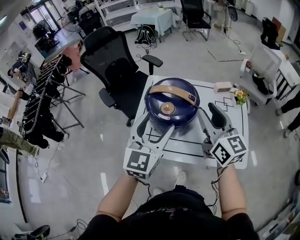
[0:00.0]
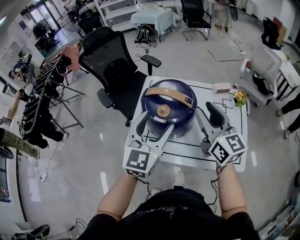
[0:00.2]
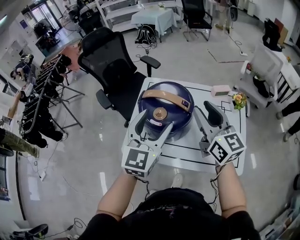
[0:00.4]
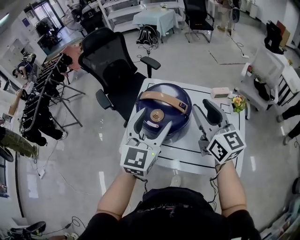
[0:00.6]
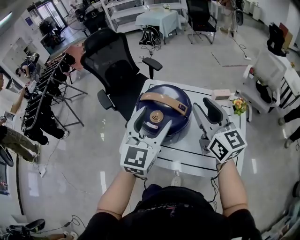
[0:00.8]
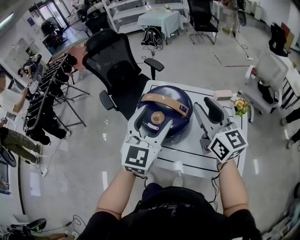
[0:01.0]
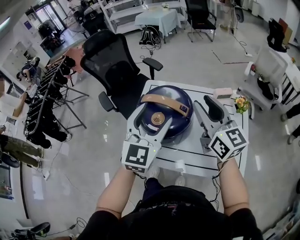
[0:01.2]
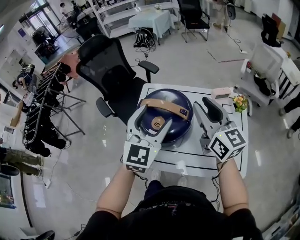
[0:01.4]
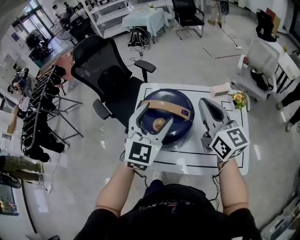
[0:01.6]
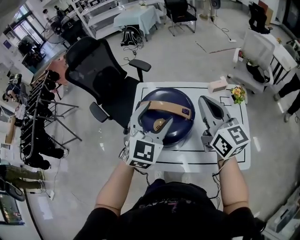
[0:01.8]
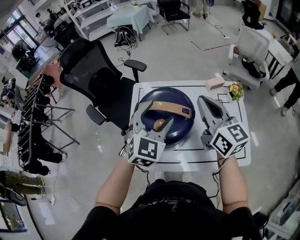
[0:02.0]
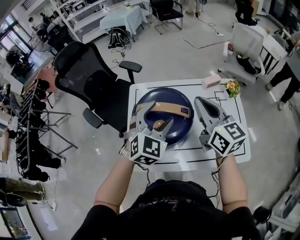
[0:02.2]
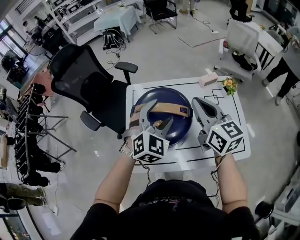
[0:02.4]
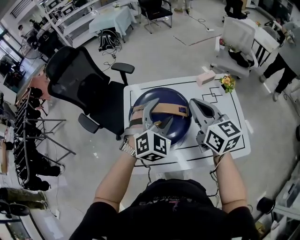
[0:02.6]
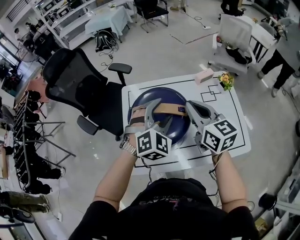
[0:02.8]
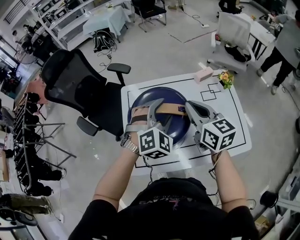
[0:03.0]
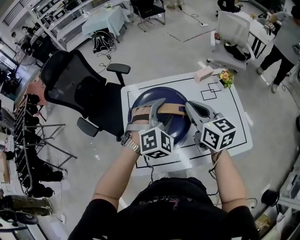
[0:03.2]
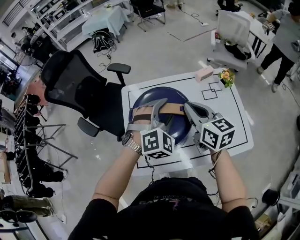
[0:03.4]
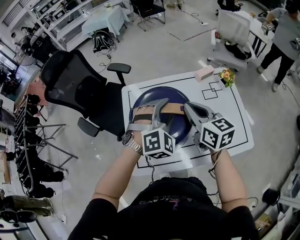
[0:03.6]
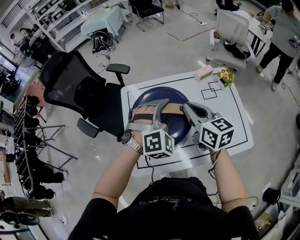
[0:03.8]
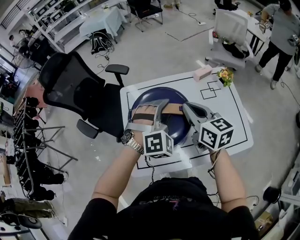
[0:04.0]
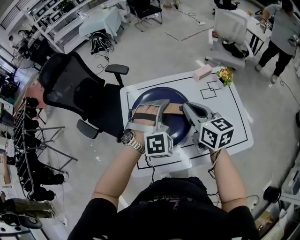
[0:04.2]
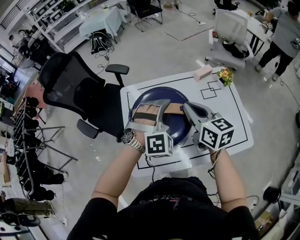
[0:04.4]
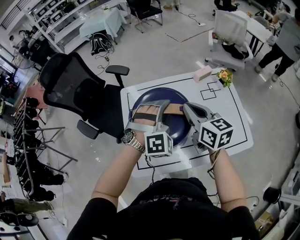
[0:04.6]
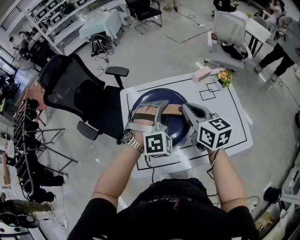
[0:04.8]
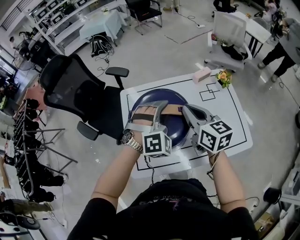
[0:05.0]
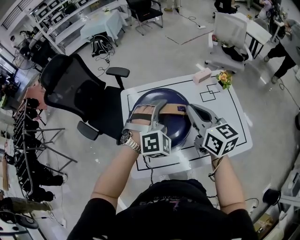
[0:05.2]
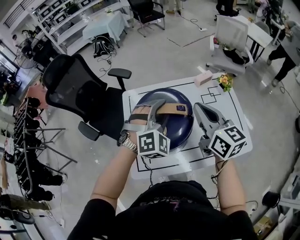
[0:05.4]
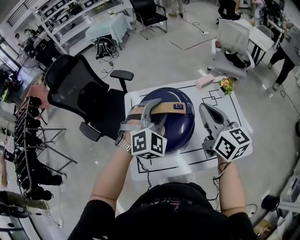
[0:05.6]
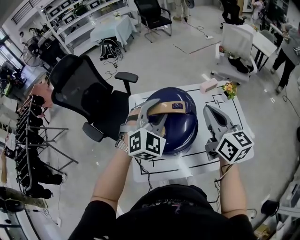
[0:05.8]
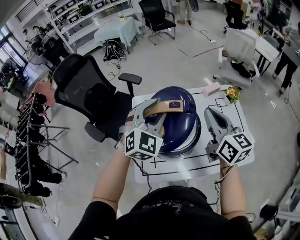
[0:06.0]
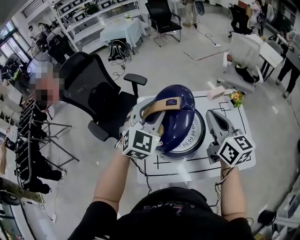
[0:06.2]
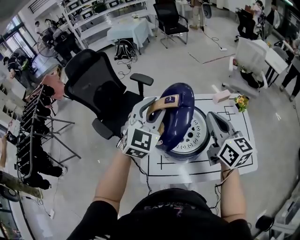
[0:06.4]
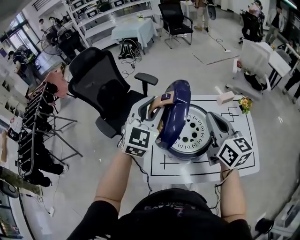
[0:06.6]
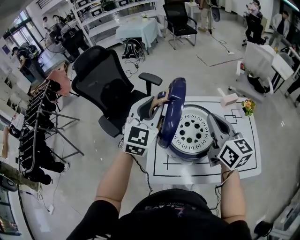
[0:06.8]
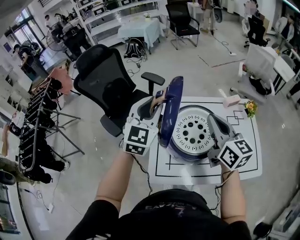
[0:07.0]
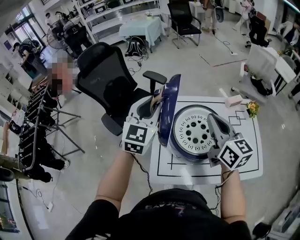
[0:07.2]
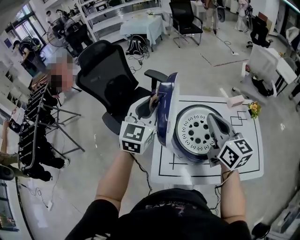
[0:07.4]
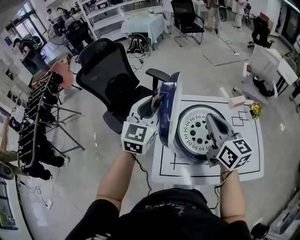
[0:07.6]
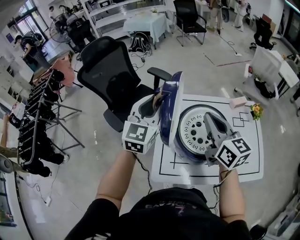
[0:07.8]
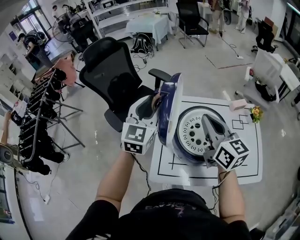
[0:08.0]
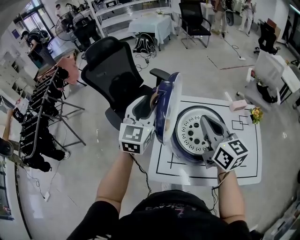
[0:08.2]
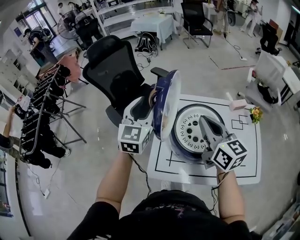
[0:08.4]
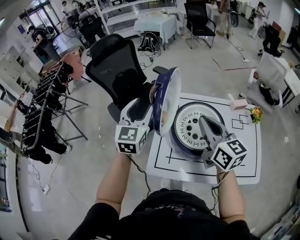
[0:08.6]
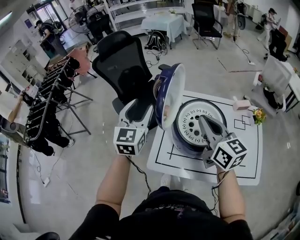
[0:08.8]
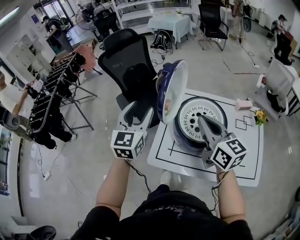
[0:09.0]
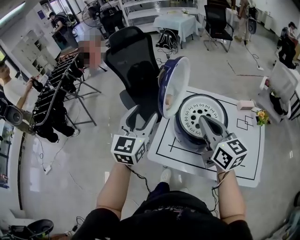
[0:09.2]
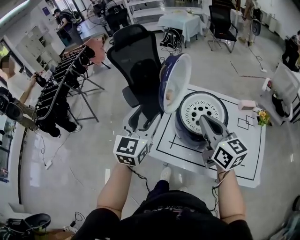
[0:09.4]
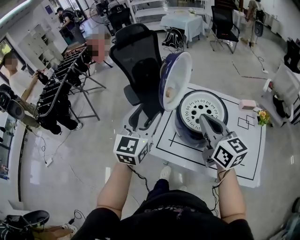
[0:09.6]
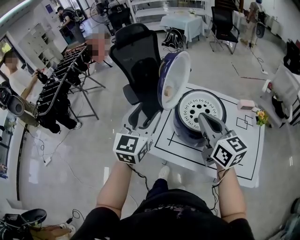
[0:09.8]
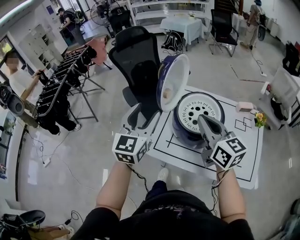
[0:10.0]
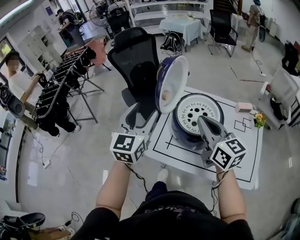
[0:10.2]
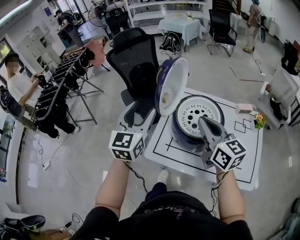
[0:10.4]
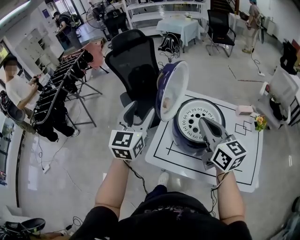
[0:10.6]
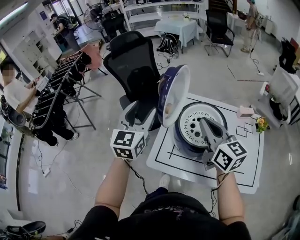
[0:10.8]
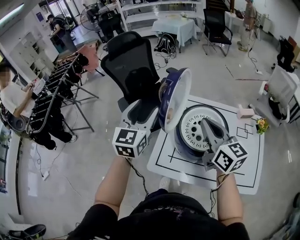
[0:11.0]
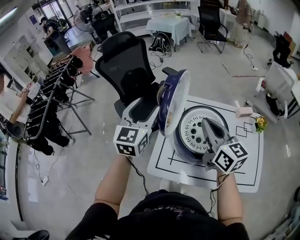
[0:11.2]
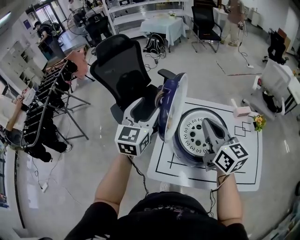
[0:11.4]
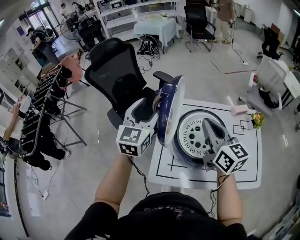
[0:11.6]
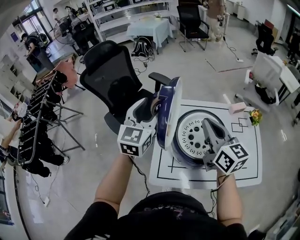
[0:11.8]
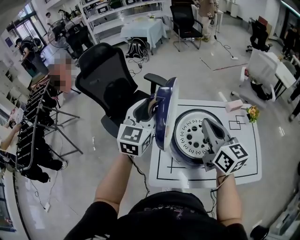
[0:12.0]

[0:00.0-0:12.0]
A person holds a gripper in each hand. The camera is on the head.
0:00.0 to 0:01.6: The two grippers go some 10 cm forward. The right gripper closes its fingers.
0:01.6 to 0:03.0: The right gripper travels downward by roughly 10 cm. Meanwhile the left gripper travels downward and forward by about 10 cm, and changes its angle by approximately 40 degrees.
0:03.0 to 0:04.4: The left gripper rotates some 20 degrees.
0:04.4 to 0:06.0: The right gripper travels upward by roughly 10 cm. The left gripper is displaced upward and to the left by approximately 10 cm, and swivels approximately 30 degrees.
0:06.0 to 0:07.6: The two grippers go approximately 15 cm to the left. The left gripper turns by about 40 degrees.
0:07.6 to 0:09.0: The left gripper shifts roughly 15 cm backward and to the left, rotates about 20 degrees, and opens, while the right gripper travels backward by some 5 cm.
0:09.0 to 0:10.4: The left gripper travels backward by about 5 cm.
0:10.4 to 0:12.0: The right gripper shifts some 10 cm forward, and rotates approximately 20 degrees, while the left gripper moves forward, some 20 cm, and changes its angle by some 20 degrees.

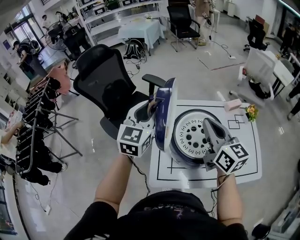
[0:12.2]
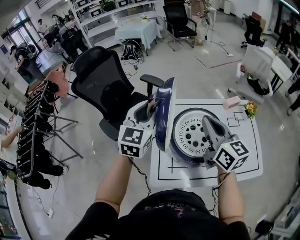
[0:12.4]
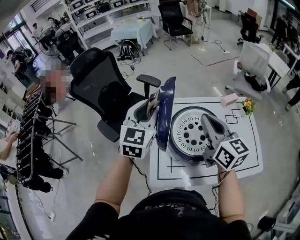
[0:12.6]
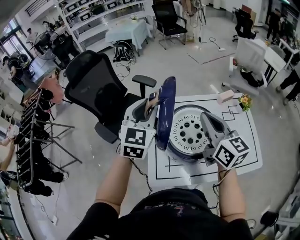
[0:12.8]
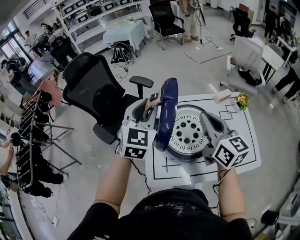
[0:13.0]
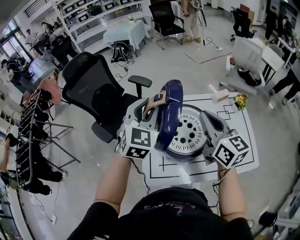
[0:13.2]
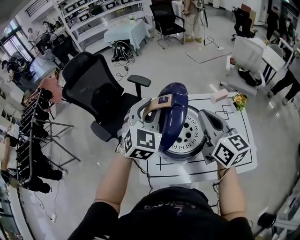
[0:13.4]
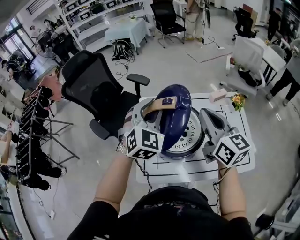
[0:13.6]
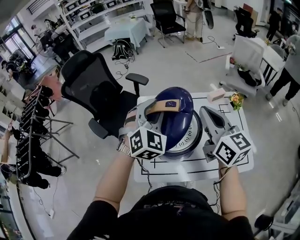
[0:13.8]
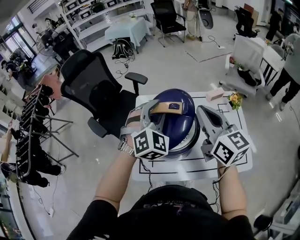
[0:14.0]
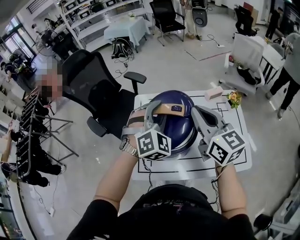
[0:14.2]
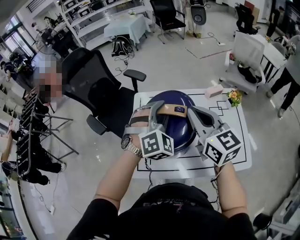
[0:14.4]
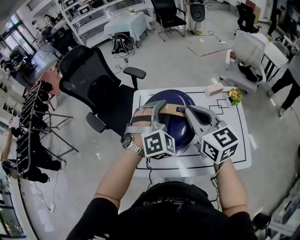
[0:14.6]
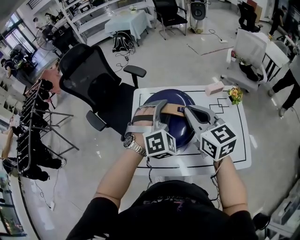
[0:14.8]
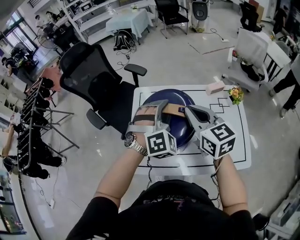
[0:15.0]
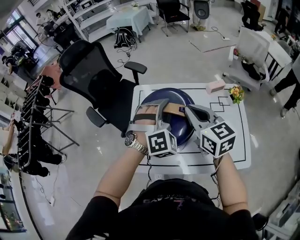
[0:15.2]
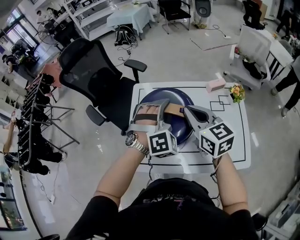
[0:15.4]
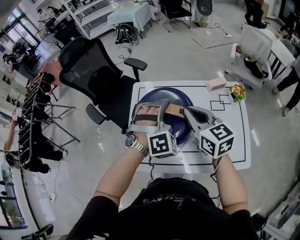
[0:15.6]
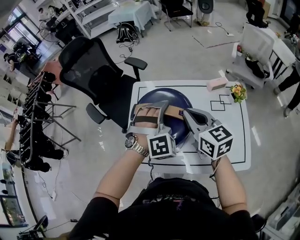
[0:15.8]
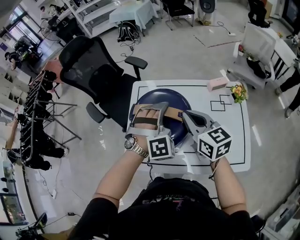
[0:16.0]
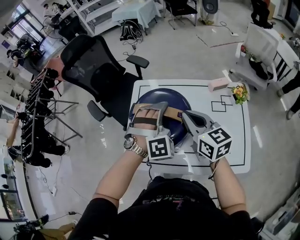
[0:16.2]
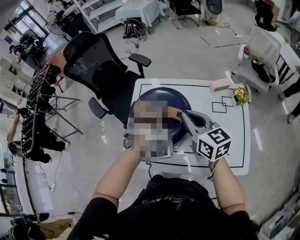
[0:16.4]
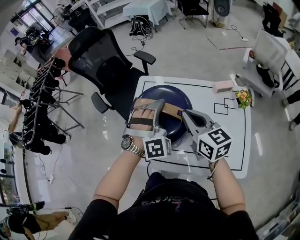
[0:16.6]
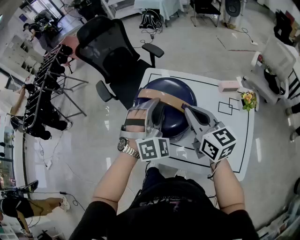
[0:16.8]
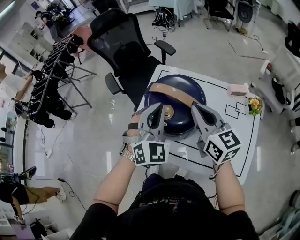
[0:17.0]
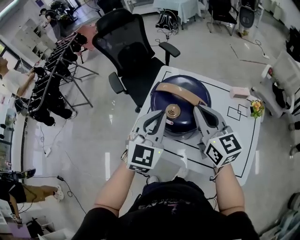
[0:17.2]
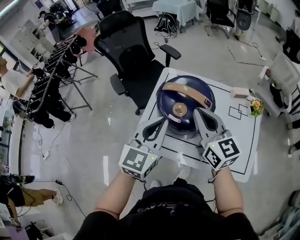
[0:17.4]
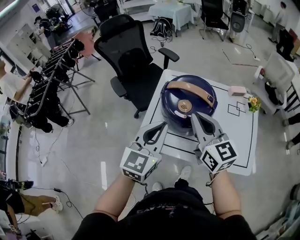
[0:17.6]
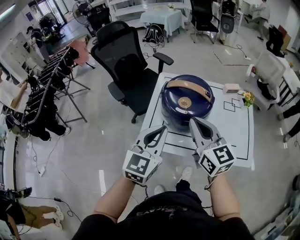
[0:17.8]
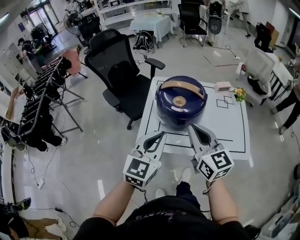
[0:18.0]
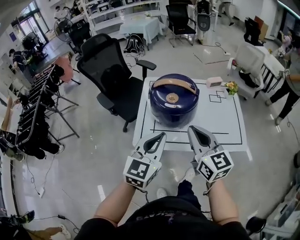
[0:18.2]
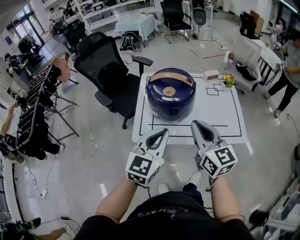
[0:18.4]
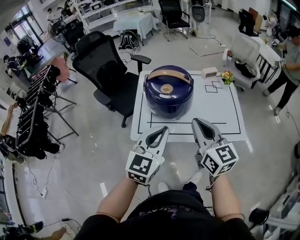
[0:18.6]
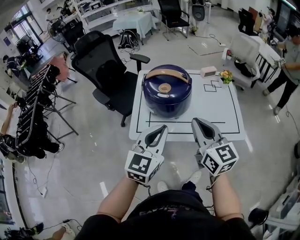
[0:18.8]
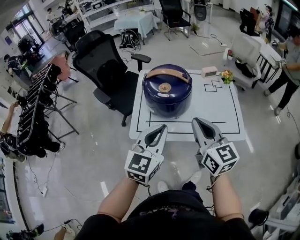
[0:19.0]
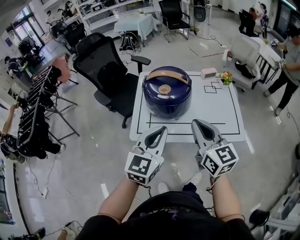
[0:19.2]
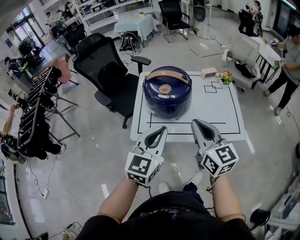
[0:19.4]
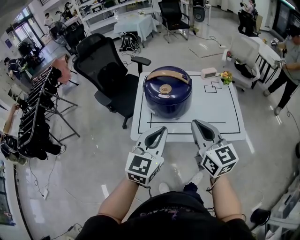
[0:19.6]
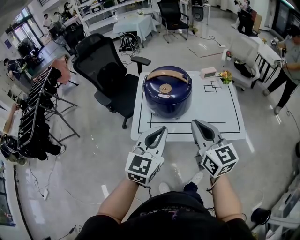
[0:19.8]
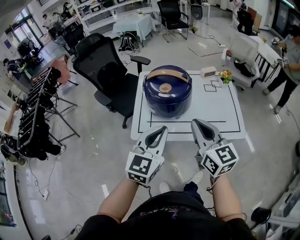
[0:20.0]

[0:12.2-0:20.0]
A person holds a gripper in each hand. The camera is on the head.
0:12.2 to 0:13.8: The right gripper shifts some 10 cm to the right, while the left gripper shifts approximately 15 cm to the right, and swivels approximately 40 degrees.
0:13.8 to 0:15.4: The left gripper shifts roughly 10 cm to the right and downward, and rotates approximately 30 degrees. Meanwhile the right gripper is displaced downward by approximately 10 cm.
0:15.4 to 0:16.8: There are only small adjustments of the grippers.
0:16.8 to 0:18.4: The left gripper changes place by some 30 cm, rolls counterclockwise, seen from behind, by approximately 60 degrees, and closes up, while the right gripper ends up approximately 25 cm from where it was, and swivels roughly 20 degrees.
0:18.4 to 0:20.0: The grippers make only small movements.

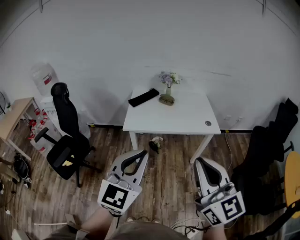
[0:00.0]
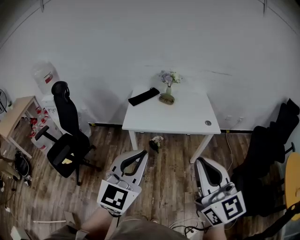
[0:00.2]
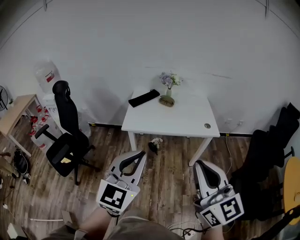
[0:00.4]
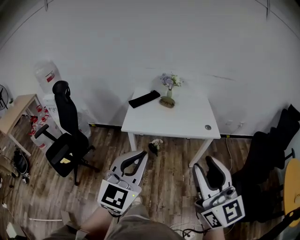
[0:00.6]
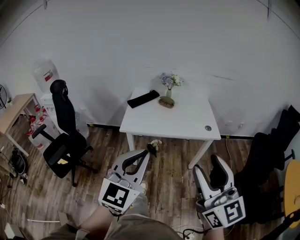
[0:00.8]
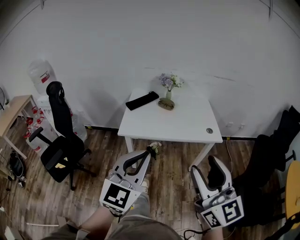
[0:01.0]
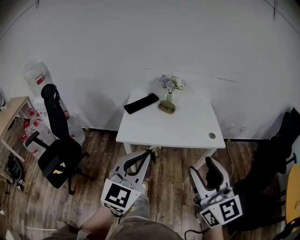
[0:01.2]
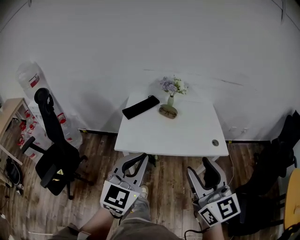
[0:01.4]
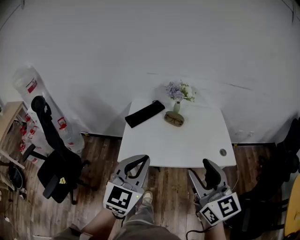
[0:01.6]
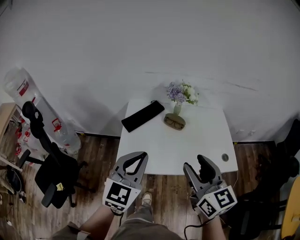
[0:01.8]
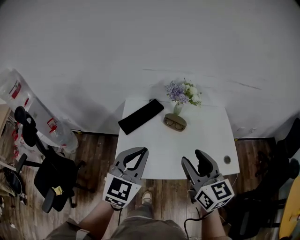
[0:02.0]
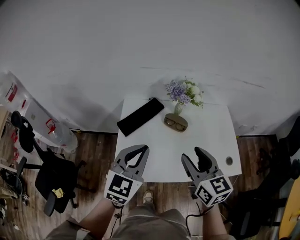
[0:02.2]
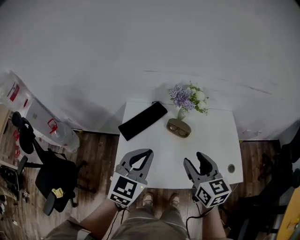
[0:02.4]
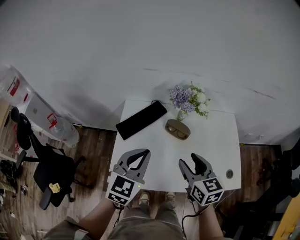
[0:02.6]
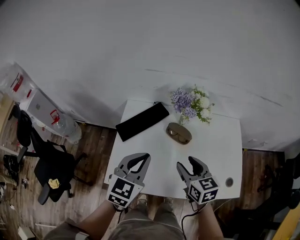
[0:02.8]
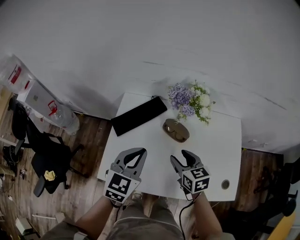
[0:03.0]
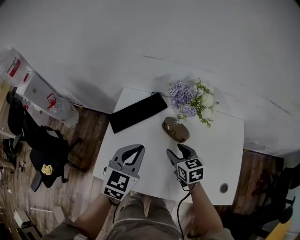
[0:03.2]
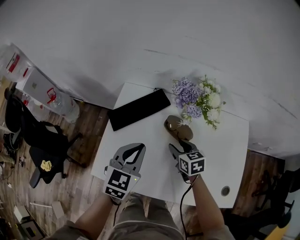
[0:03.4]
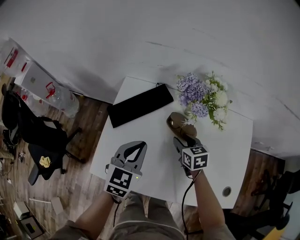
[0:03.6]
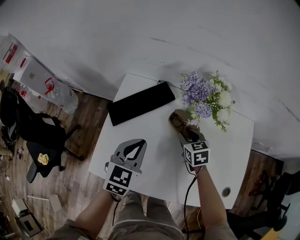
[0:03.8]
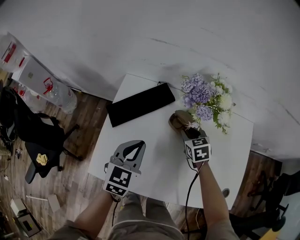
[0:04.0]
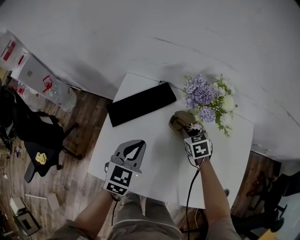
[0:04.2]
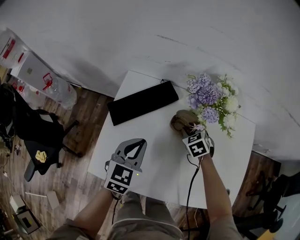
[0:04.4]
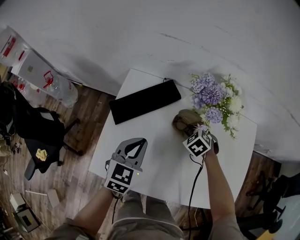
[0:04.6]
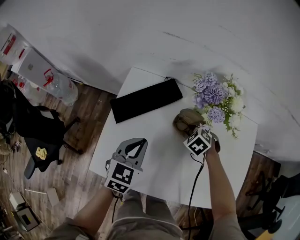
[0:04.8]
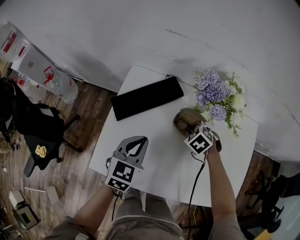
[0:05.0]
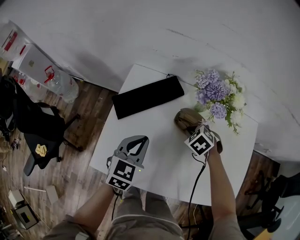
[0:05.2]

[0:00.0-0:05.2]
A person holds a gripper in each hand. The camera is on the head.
0:00.0 to 0:01.8: The two grippers travel together, forward, about 40 cm. The right gripper opens up.
0:01.8 to 0:03.4: The left gripper shifts roughly 30 cm forward and downward, and rotates about 30 degrees. The right gripper moves downward and forward, about 50 cm, and points its fingers about 40 degrees further downward.
0:03.4 to 0:05.2: The left gripper heads downward, covering approximately 5 cm; the right gripper points its fingers roughly 30 degrees further downward, and closes up.
